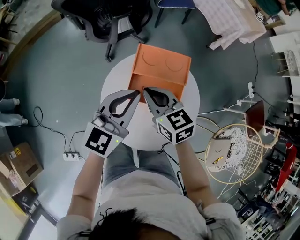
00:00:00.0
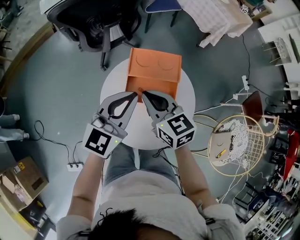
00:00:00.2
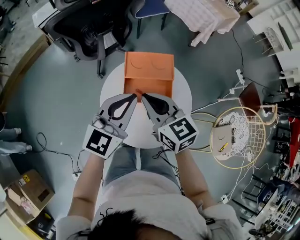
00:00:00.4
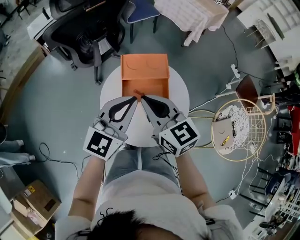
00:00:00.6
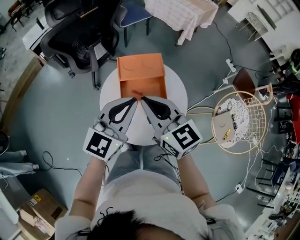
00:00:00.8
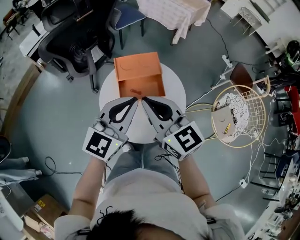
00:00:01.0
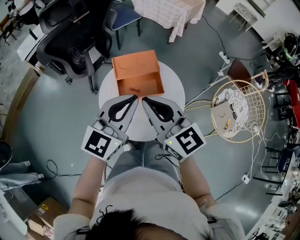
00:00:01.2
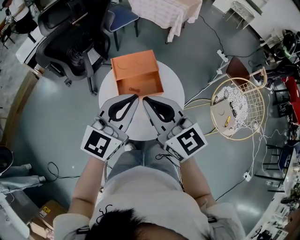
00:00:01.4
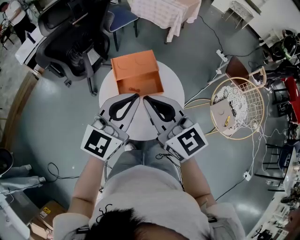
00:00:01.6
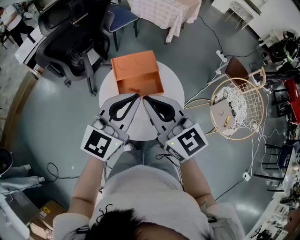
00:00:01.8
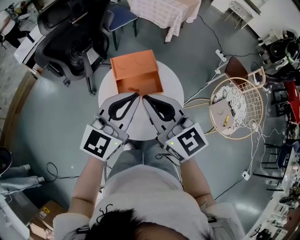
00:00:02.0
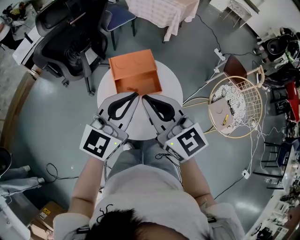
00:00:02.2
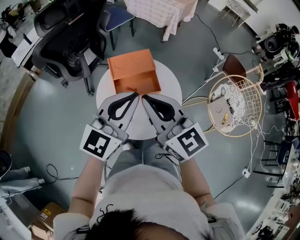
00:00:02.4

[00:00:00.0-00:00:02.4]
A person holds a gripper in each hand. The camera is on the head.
00:00:00.0 to 00:00:01.2: The right gripper is displaced upward and backward by roughly 20 cm, and turns by some 30 degrees; the left gripper heads backward and upward, covering approximately 15 cm, and rotates roughly 20 degrees.
00:00:01.2 to 00:00:02.4: The grippers make only small movements.

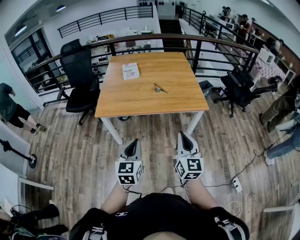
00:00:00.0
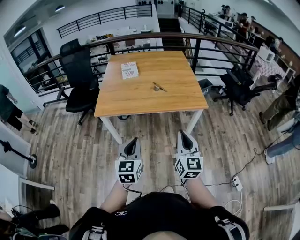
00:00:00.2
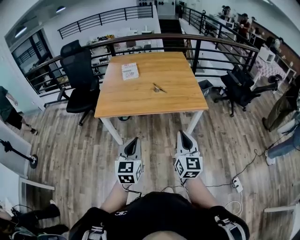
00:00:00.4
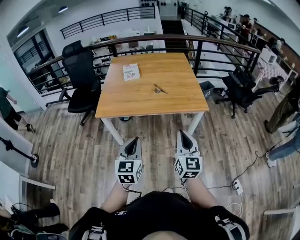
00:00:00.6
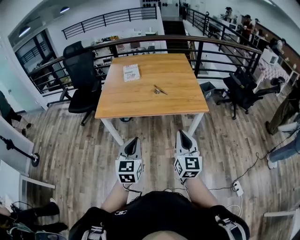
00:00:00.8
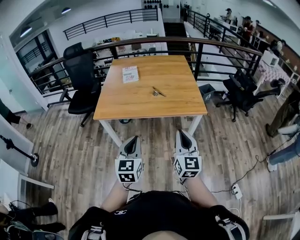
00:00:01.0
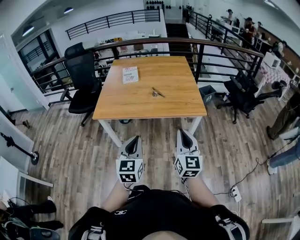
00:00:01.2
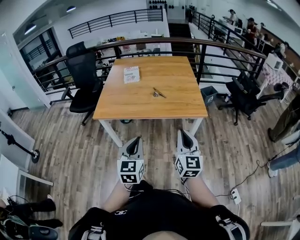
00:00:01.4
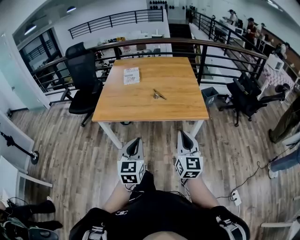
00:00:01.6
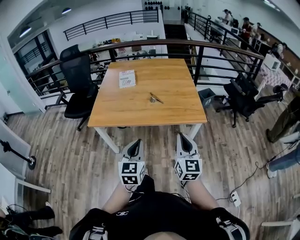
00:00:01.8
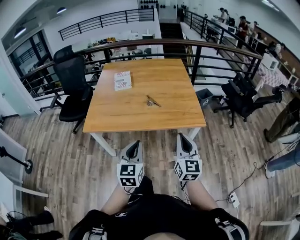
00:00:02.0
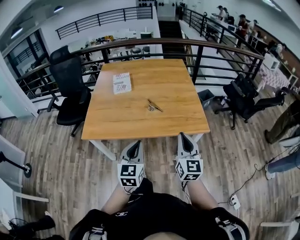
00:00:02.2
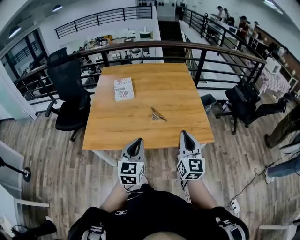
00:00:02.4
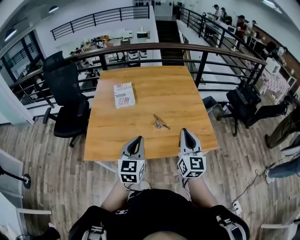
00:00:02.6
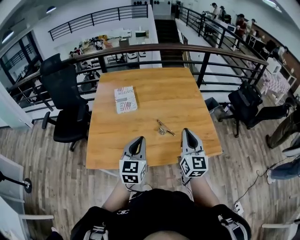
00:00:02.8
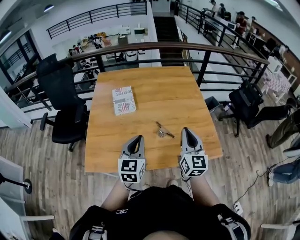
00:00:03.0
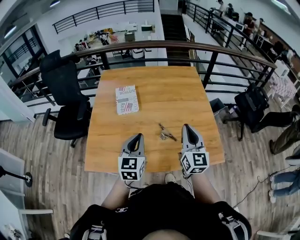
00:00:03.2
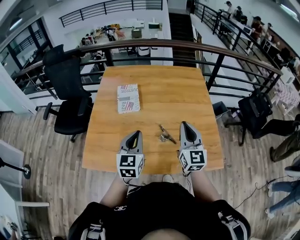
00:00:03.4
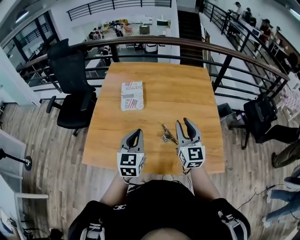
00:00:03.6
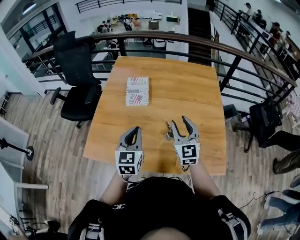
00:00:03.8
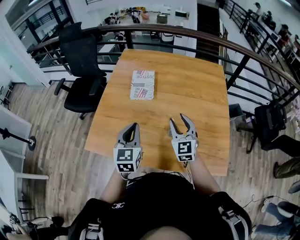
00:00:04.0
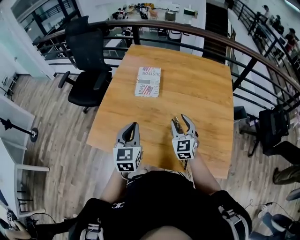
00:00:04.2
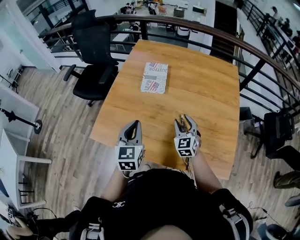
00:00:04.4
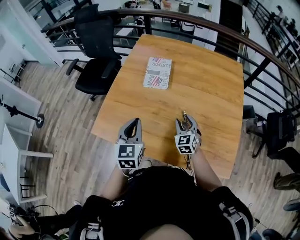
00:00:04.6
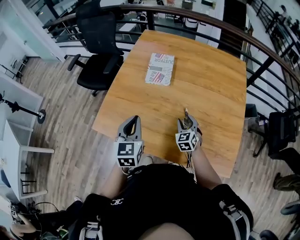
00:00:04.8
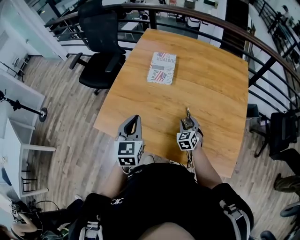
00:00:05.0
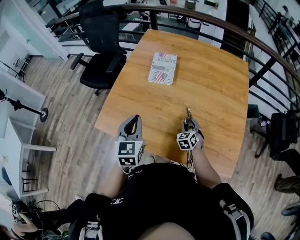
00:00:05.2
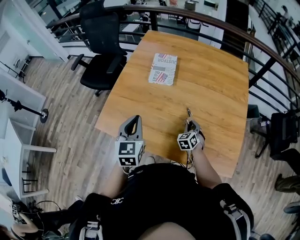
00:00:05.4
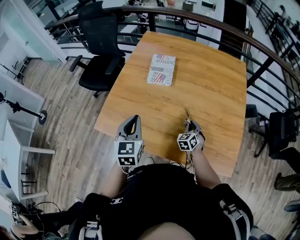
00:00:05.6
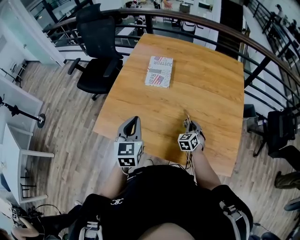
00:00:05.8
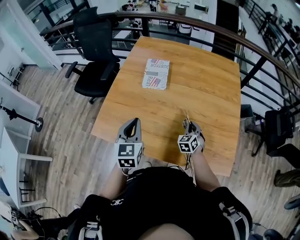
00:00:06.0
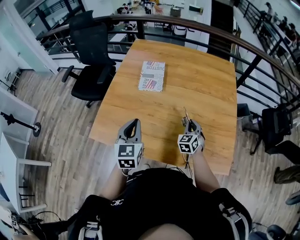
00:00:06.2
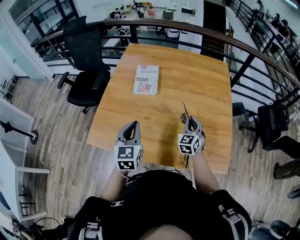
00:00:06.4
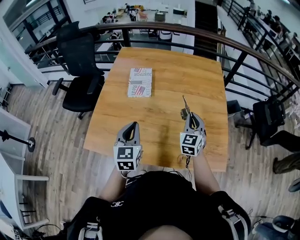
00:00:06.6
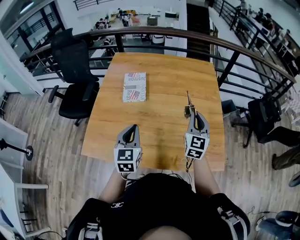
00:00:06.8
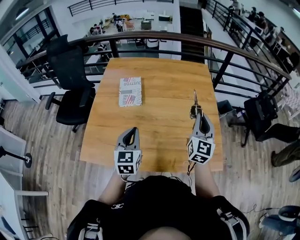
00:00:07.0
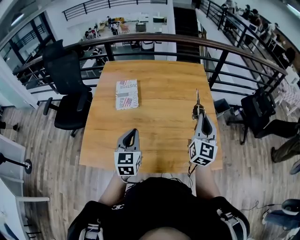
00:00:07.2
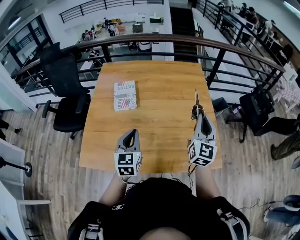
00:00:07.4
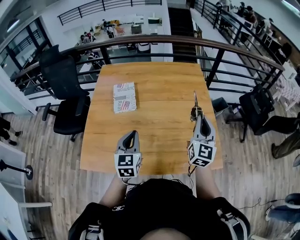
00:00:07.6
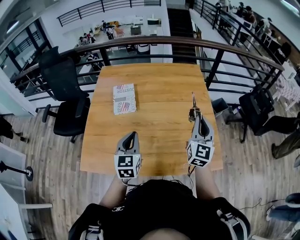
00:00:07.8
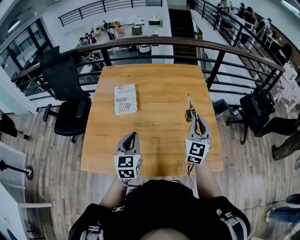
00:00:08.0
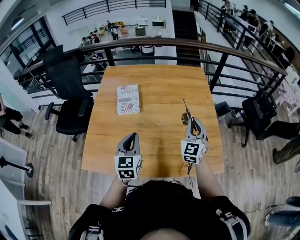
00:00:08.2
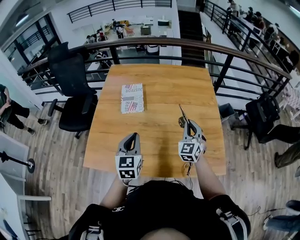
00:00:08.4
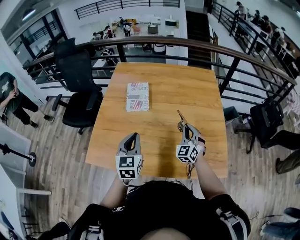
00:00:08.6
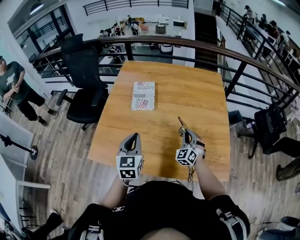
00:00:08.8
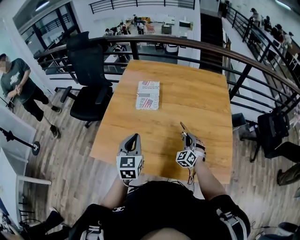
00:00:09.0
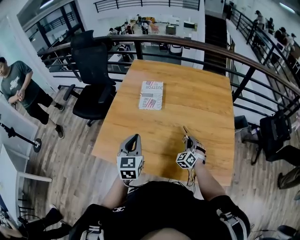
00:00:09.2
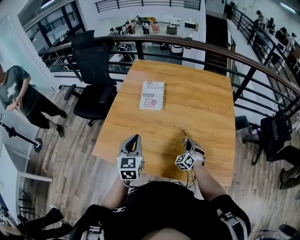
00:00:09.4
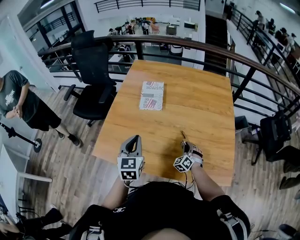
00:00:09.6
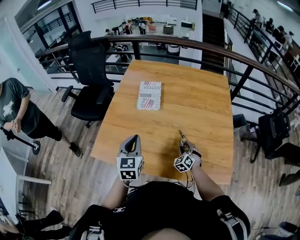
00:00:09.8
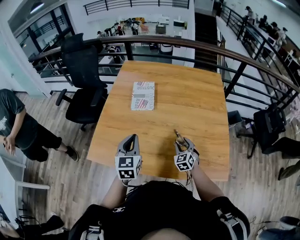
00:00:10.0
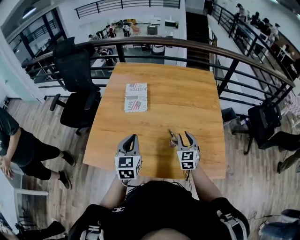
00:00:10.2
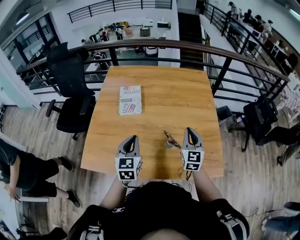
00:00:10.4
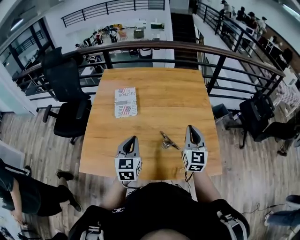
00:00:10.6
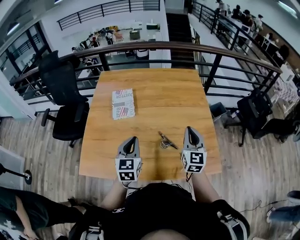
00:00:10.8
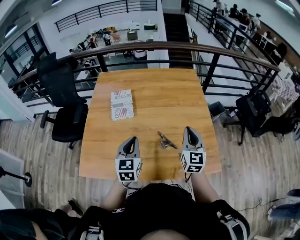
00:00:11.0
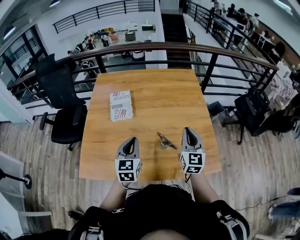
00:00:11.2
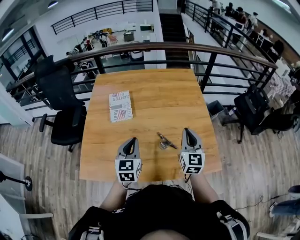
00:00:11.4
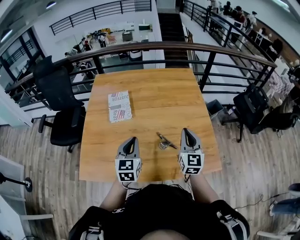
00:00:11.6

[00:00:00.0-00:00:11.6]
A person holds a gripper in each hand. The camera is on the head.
00:00:00.0 to 00:00:01.4: The left gripper is displaced to the right by approximately 10 cm, while the right gripper heads to the right and forward, covering roughly 10 cm.
00:00:01.4 to 00:00:02.8: The pair of grippers is taken forward, some 50 cm.
00:00:02.8 to 00:00:04.4: The left gripper shifts by roughly 15 cm, and changes its angle by about 30 degrees; the right gripper ends up about 30 cm from where it was, rotates about 40 degrees, and opens up.
00:00:04.4 to 00:00:05.8: The right gripper travels downward and to the right by about 15 cm, rotates about 20 degrees, and closes its fingers.
00:00:05.8 to 00:00:07.2: The left gripper shifts approximately 10 cm to the right, while the right gripper moves upward and to the right, some 35 cm, and points its fingers roughly 40 degrees further upward.
00:00:07.2 to 00:00:08.8: The left gripper moves to the left, roughly 5 cm. The right gripper moves downward and to the left, roughly 25 cm, and twists about 50 degrees counterclockwise, seen from behind.
00:00:08.8 to 00:00:10.2: The right gripper goes downward and returns, some 15 cm each way, turns by approximately 30 degrees, and opens.
00:00:10.2 to 00:00:11.6: The right gripper travels upward and to the right by about 15 cm, swivels roughly 20 degrees, and closes its fingers. The left gripper is displaced to the right by about 5 cm.

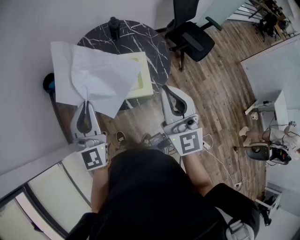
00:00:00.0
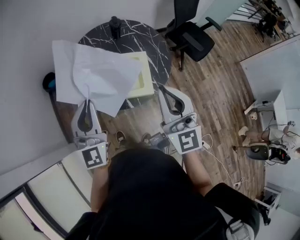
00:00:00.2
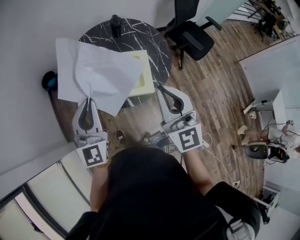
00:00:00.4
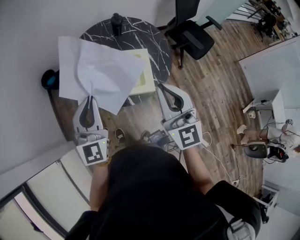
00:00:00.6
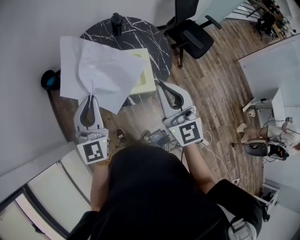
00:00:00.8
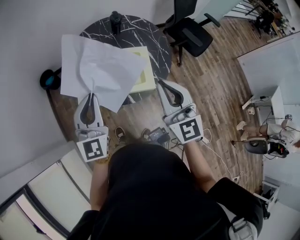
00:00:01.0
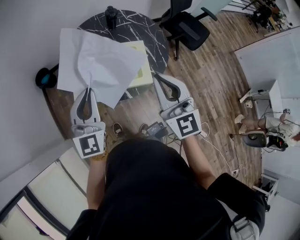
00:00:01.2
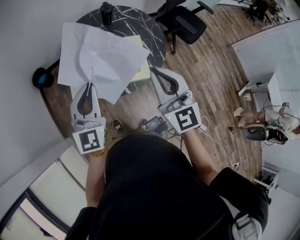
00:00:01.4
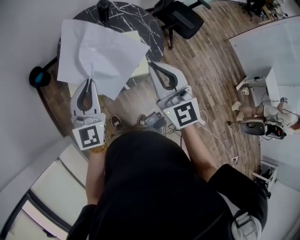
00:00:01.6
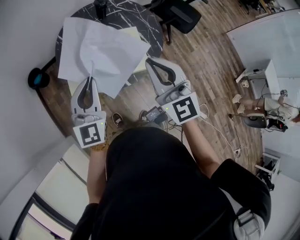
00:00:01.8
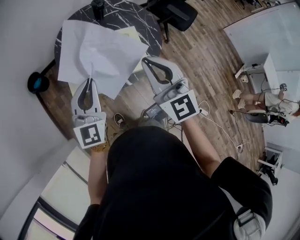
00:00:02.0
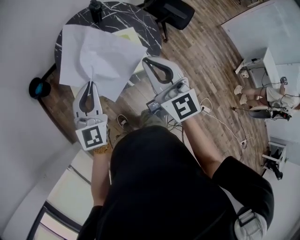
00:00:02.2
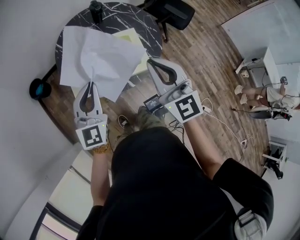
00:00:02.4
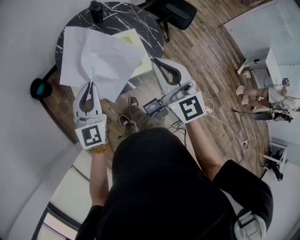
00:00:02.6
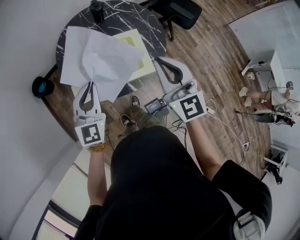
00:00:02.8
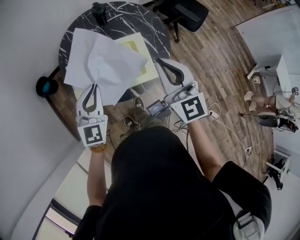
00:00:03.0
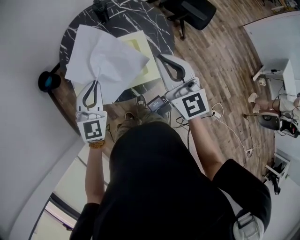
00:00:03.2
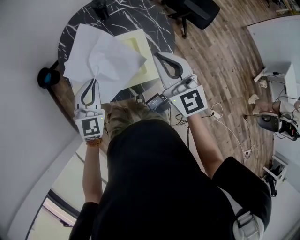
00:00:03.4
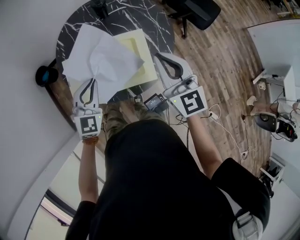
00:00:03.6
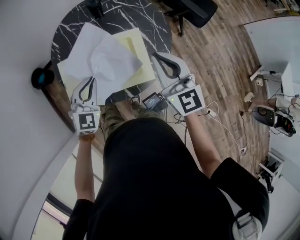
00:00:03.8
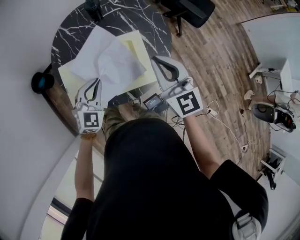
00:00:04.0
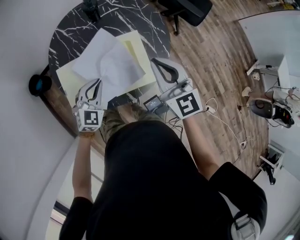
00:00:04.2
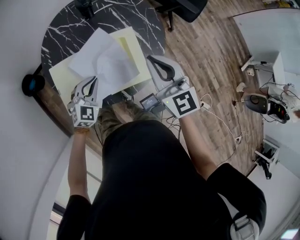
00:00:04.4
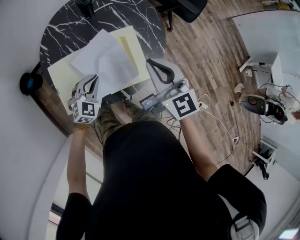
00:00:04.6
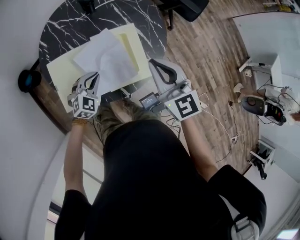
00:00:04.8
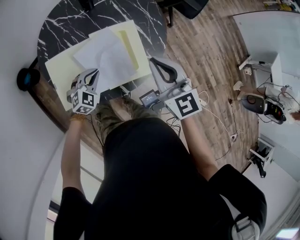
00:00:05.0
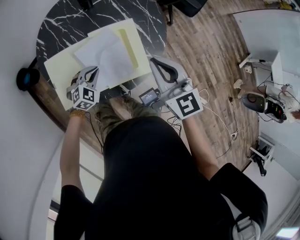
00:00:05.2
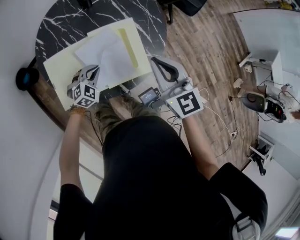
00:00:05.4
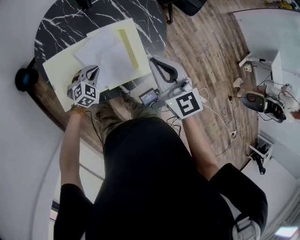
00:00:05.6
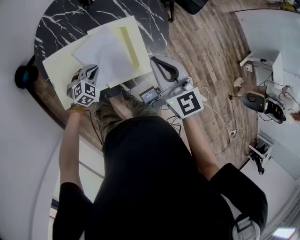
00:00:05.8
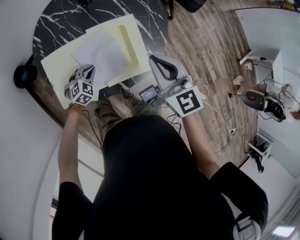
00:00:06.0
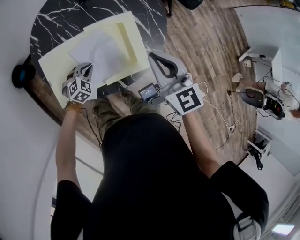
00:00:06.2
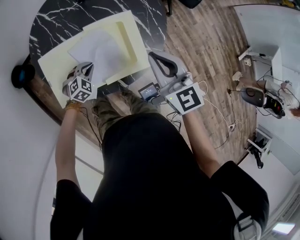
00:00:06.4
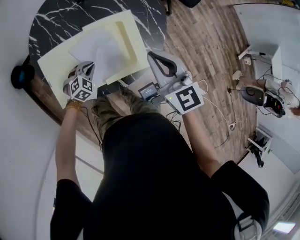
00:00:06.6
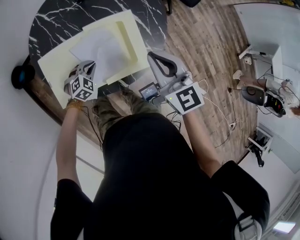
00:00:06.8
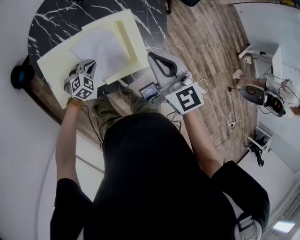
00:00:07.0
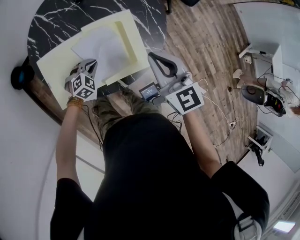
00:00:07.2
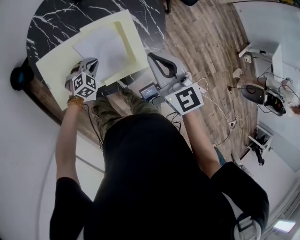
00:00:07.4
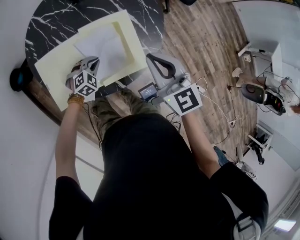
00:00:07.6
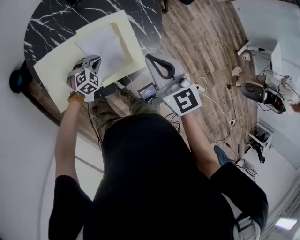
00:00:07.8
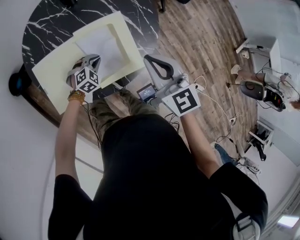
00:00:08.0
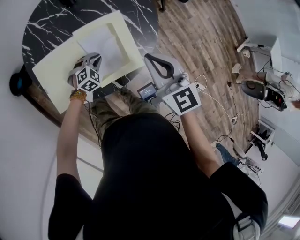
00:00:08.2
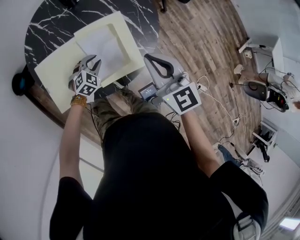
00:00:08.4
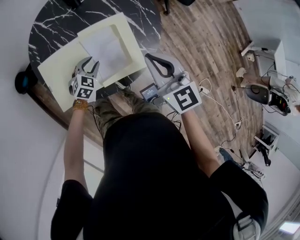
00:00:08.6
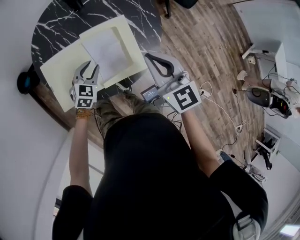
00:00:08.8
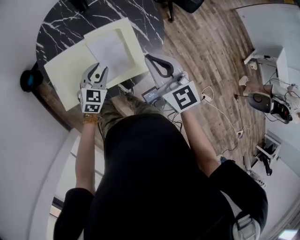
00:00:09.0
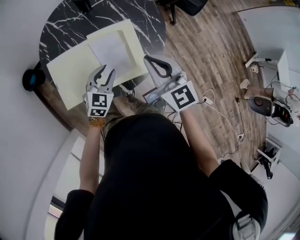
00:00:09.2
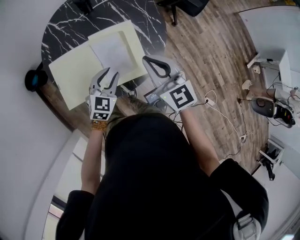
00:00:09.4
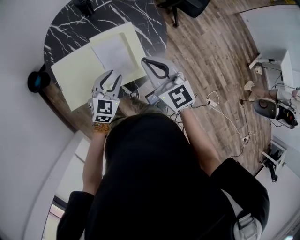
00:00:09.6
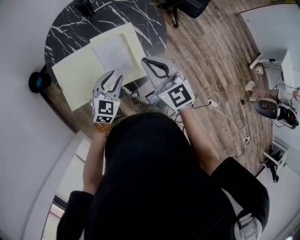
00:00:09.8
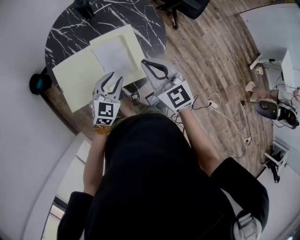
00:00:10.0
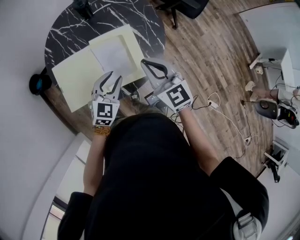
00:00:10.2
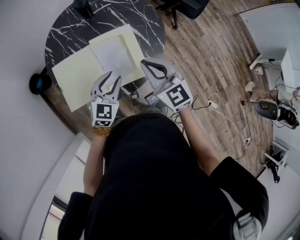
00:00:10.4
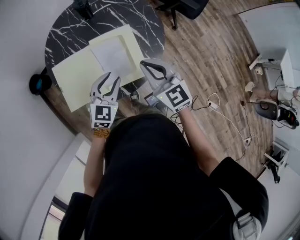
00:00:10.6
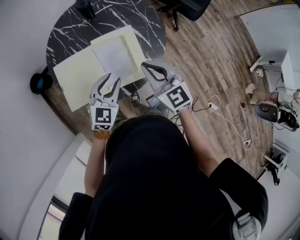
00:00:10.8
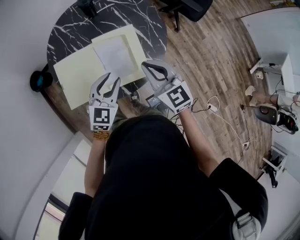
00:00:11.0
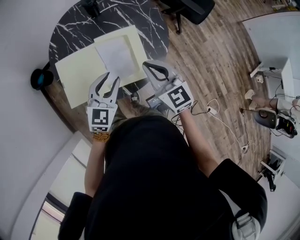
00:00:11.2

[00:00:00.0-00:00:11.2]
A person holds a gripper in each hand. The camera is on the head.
00:00:00.0 to 00:00:01.6: The left gripper is displaced downward by approximately 5 cm; the right gripper travels to the left and downward by about 10 cm.
00:00:01.6 to 00:00:03.2: The left gripper is displaced forward and downward by roughly 15 cm; the right gripper shifts about 15 cm forward, to the right and downward.
00:00:03.2 to 00:00:04.8: The right gripper shifts about 10 cm downward, while the left gripper shifts some 25 cm downward, and changes its angle by some 30 degrees.
00:00:04.8 to 00:00:06.4: The left gripper goes about 10 cm downward.
00:00:06.4 to 00:00:08.0: The left gripper shifts roughly 10 cm to the right.
00:00:08.0 to 00:00:09.6: The left gripper shifts roughly 20 cm upward, turns by roughly 30 degrees, and opens up.
00:00:09.6 to 00:00:11.2: The left gripper heads upward, covering approximately 10 cm.
